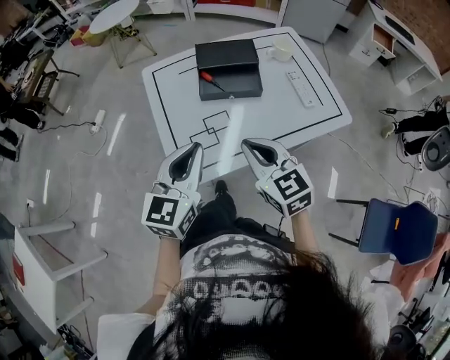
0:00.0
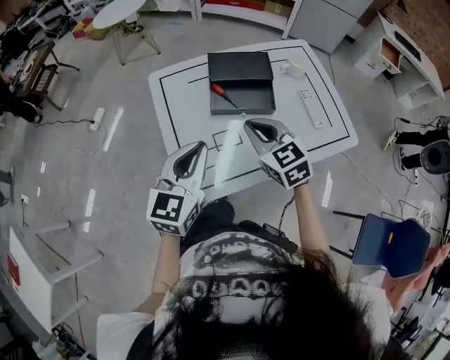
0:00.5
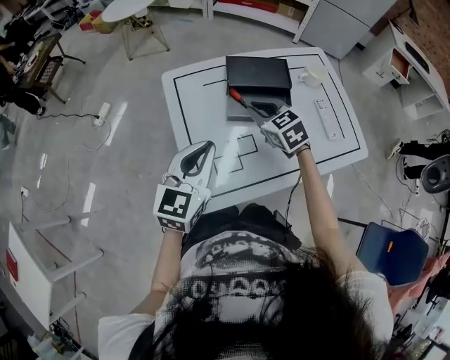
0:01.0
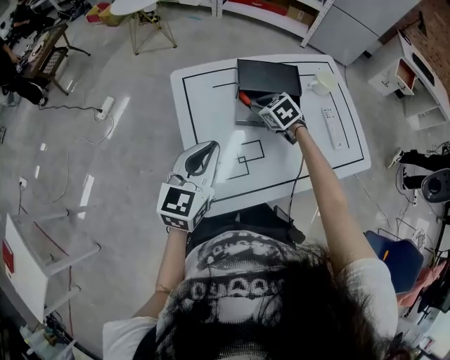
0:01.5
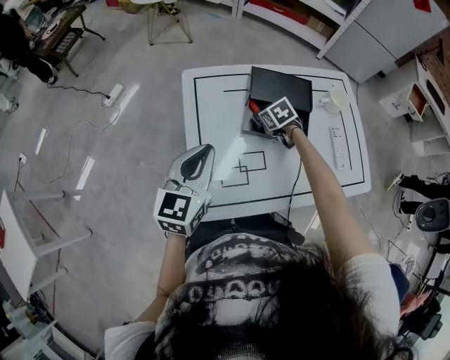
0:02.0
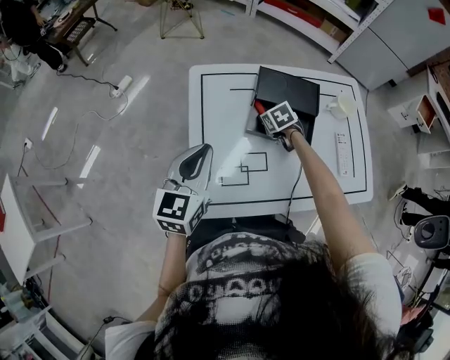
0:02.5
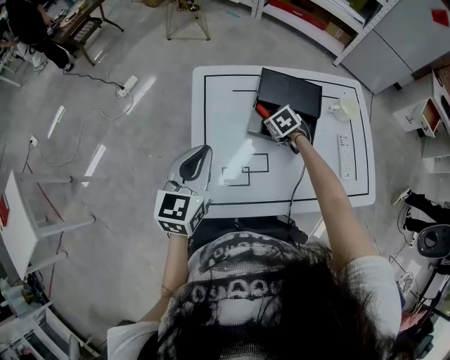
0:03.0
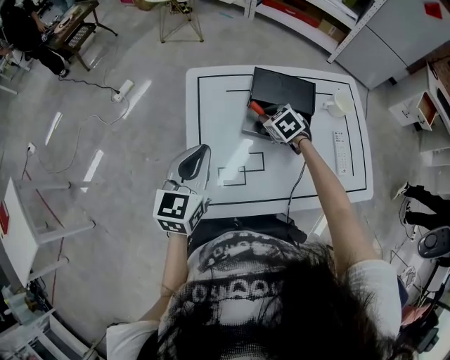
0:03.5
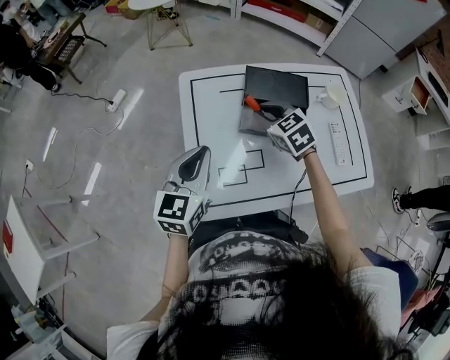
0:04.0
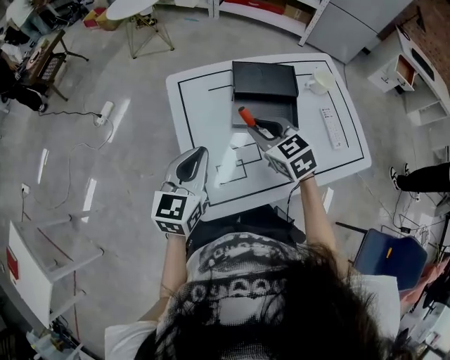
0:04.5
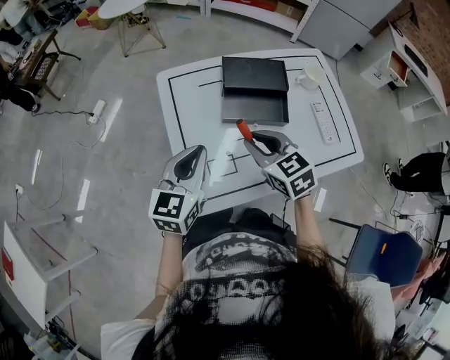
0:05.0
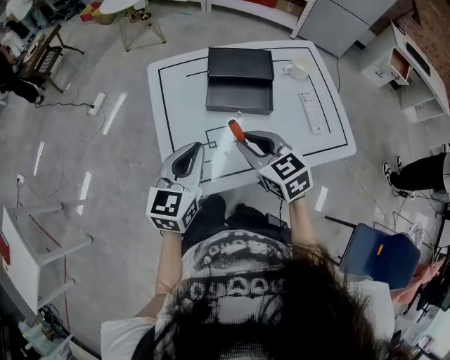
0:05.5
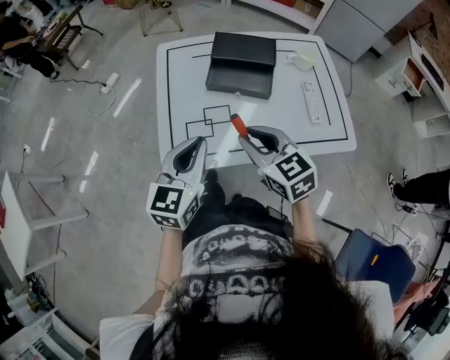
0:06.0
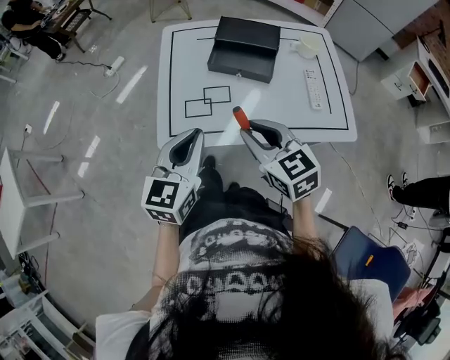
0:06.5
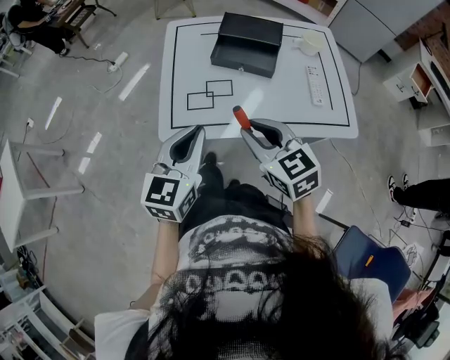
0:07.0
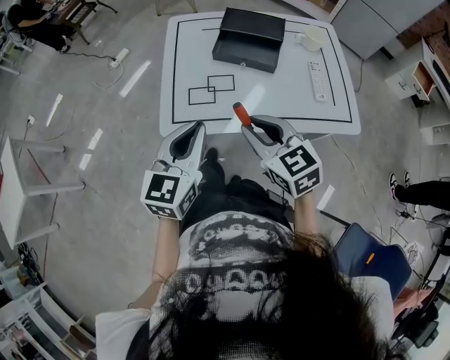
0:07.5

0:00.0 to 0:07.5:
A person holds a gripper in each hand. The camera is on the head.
0:00.0 to 0:02.0: The left gripper shifts approximately 20 cm forward and to the left. The right gripper heads forward and downward, covering approximately 40 cm, tips its fingers downward by about 40 degrees, and opens.
0:02.0 to 0:04.0: The right gripper travels upward by about 15 cm, and swivels some 20 degrees.
0:04.0 to 0:05.5: The right gripper goes approximately 20 cm backward; the left gripper goes some 10 cm backward and to the right.
0:05.5 to 0:07.5: Both grippers travel together backward, about 15 cm.

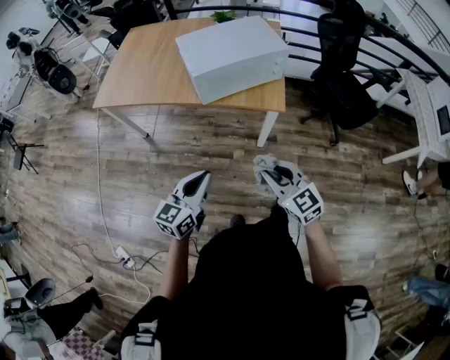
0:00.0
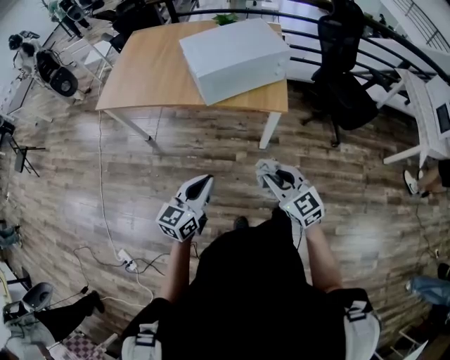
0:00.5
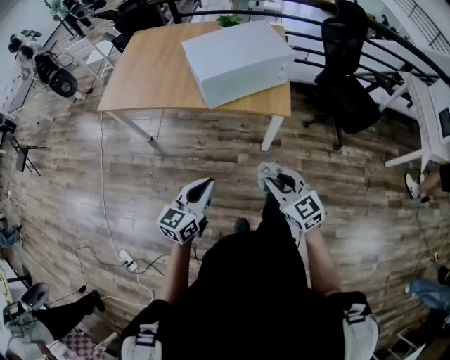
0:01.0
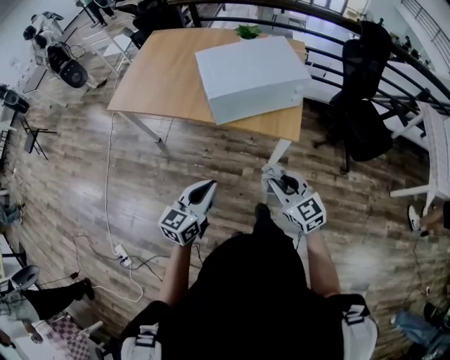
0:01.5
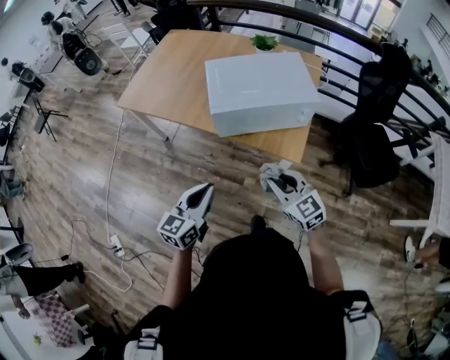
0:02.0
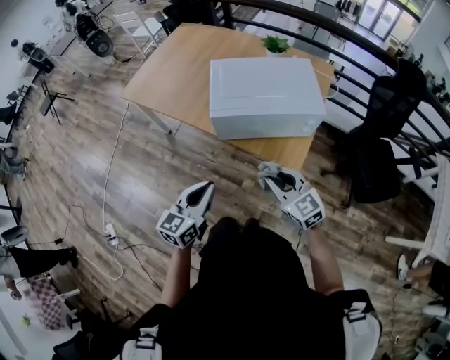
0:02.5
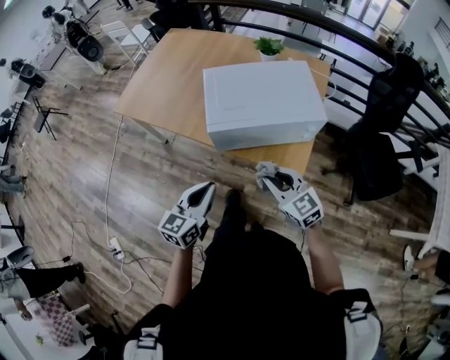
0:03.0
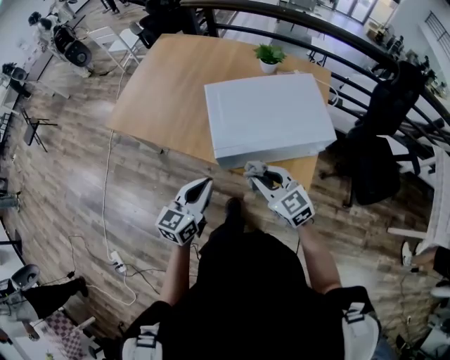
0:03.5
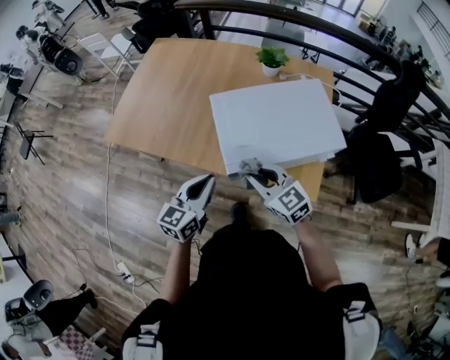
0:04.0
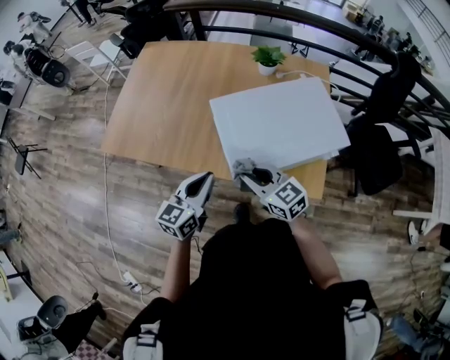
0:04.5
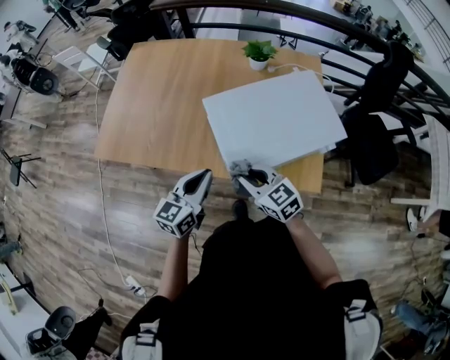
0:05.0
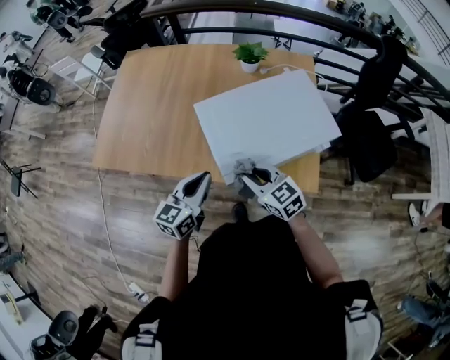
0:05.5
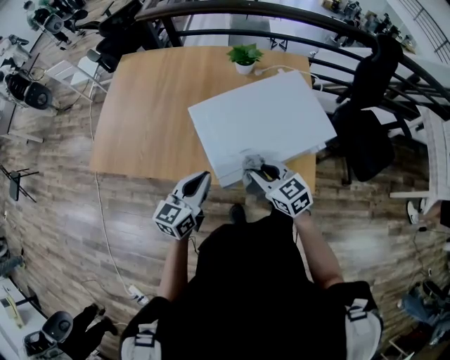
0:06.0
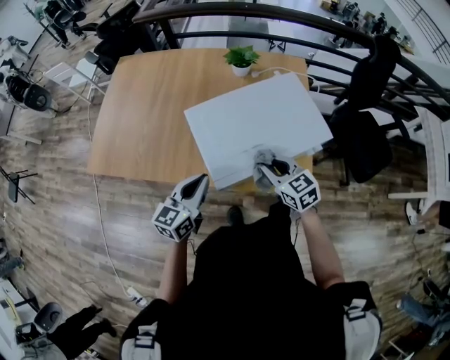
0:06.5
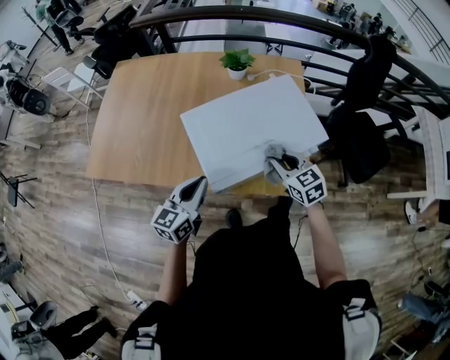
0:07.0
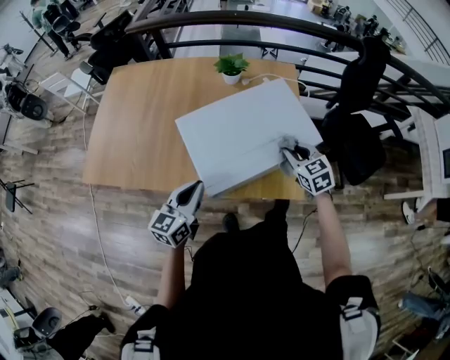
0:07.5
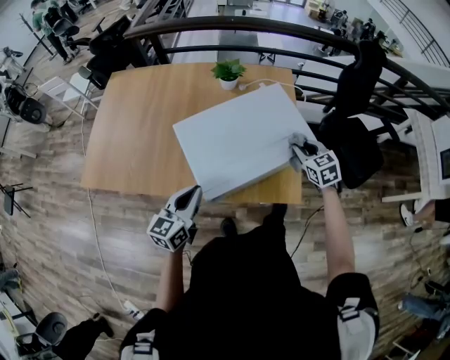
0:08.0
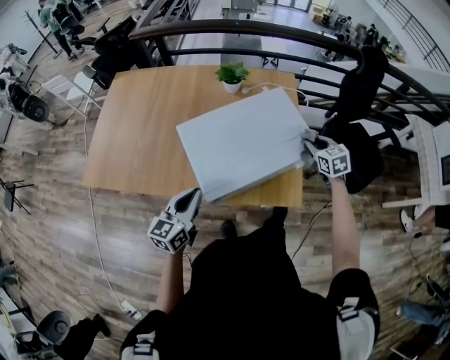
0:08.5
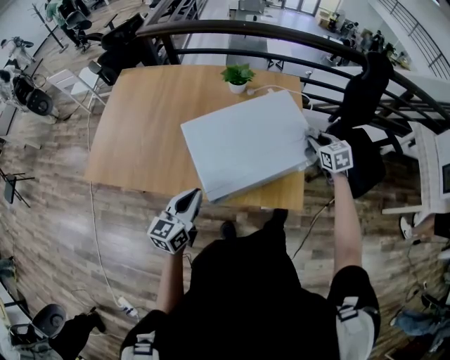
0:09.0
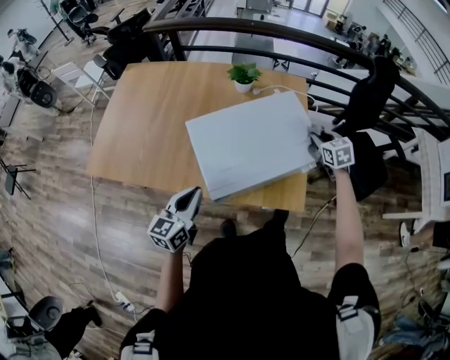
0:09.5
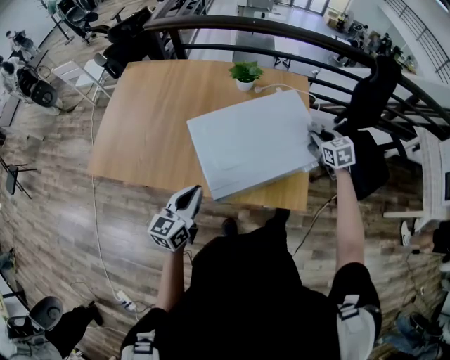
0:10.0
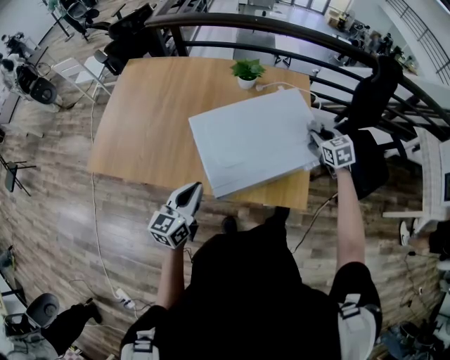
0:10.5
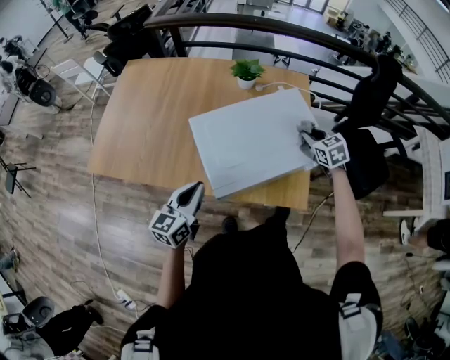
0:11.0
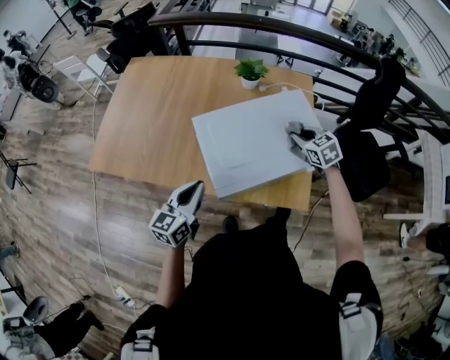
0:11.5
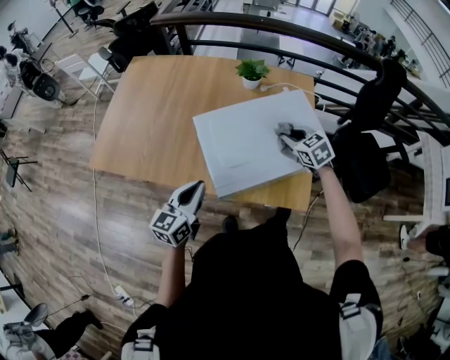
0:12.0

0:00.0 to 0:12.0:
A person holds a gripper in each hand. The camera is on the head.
0:00.0 to 0:02.0: The grippers both shift forward by roughly 15 cm.
0:02.0 to 0:04.0: The left gripper heads forward, covering about 30 cm, while the right gripper shifts roughly 30 cm forward and to the left.
0:04.0 to 0:06.0: The right gripper shifts by roughly 10 cm; the left gripper travels forward by approximately 5 cm.
0:06.0 to 0:08.0: The right gripper travels to the right and forward by some 25 cm, and changes its angle by about 30 degrees.
0:08.0 to 0:10.0: The right gripper heads forward, covering approximately 10 cm.
0:10.0 to 0:12.0: The right gripper moves to the left, roughly 15 cm.

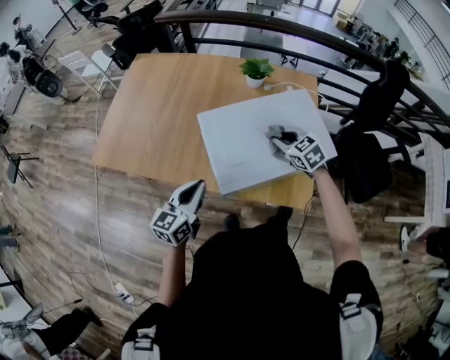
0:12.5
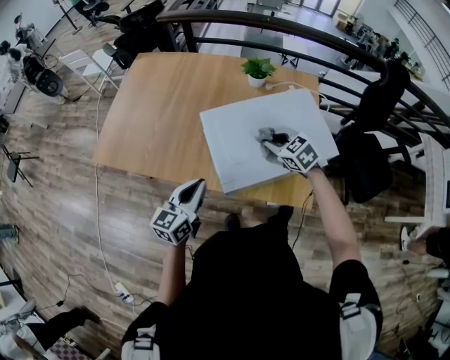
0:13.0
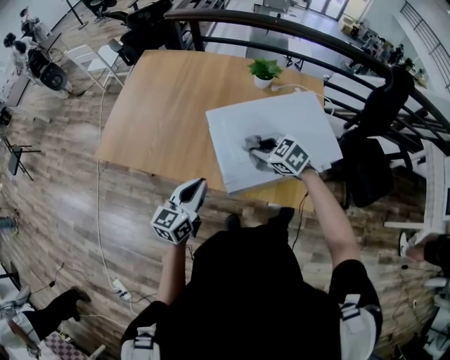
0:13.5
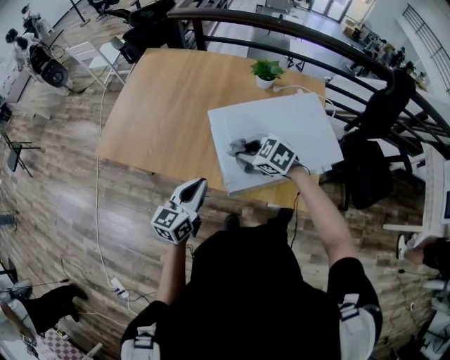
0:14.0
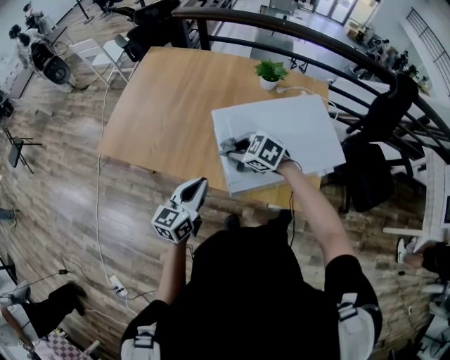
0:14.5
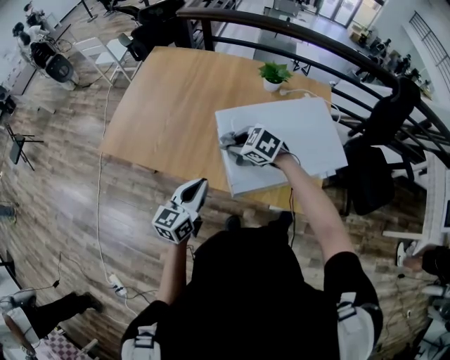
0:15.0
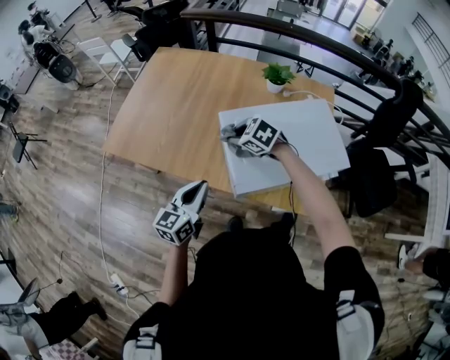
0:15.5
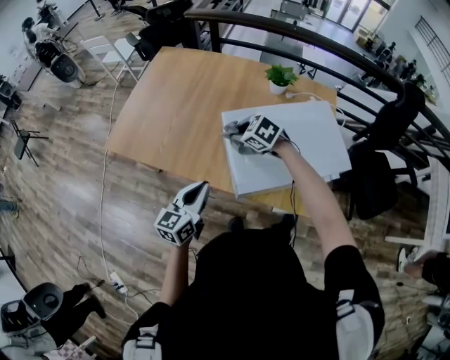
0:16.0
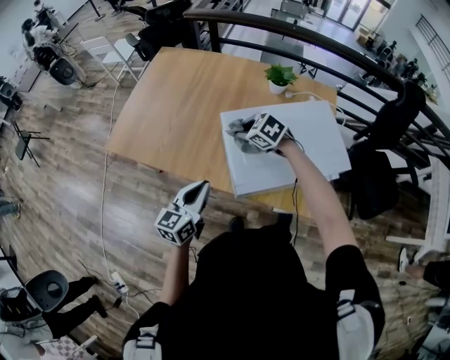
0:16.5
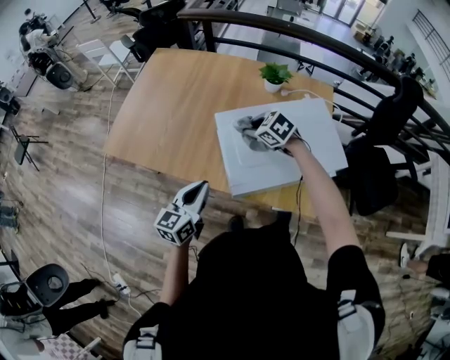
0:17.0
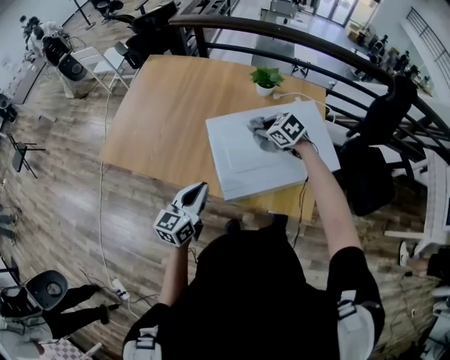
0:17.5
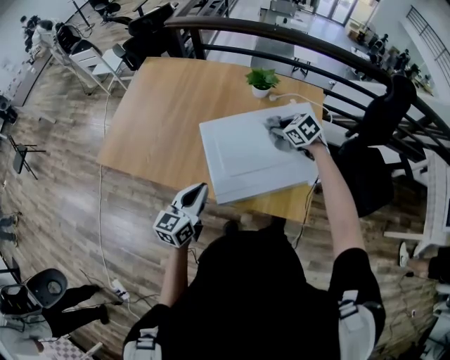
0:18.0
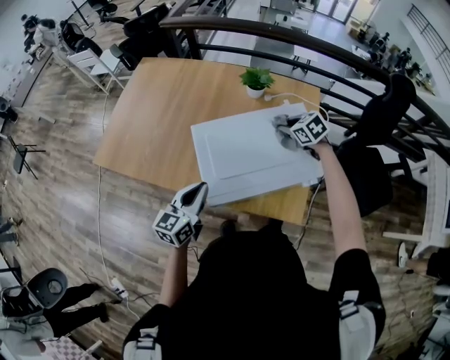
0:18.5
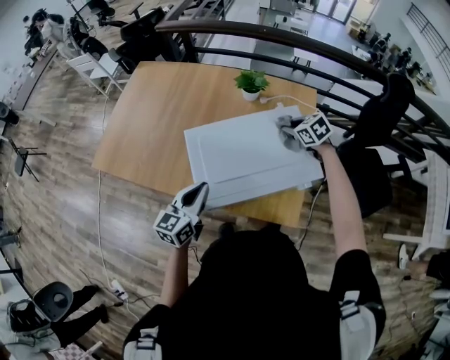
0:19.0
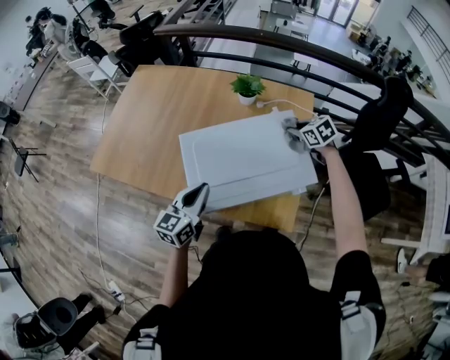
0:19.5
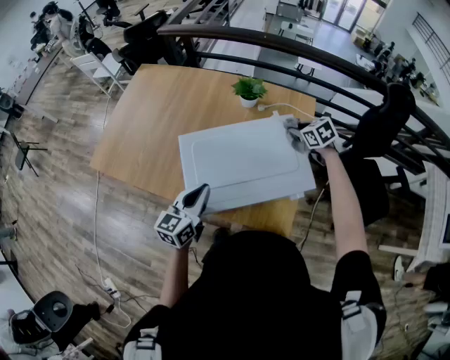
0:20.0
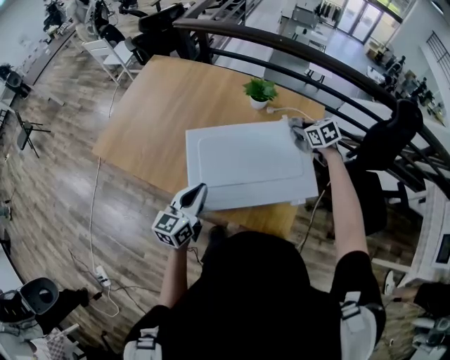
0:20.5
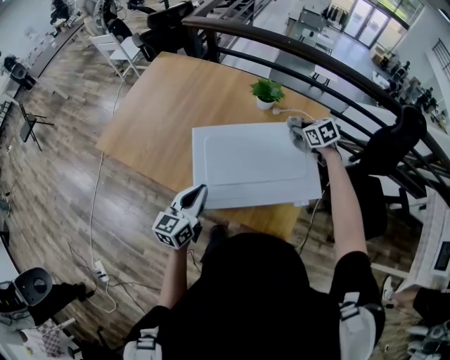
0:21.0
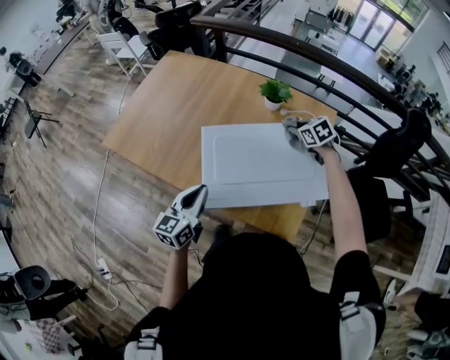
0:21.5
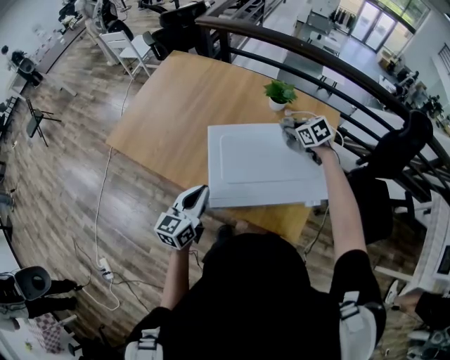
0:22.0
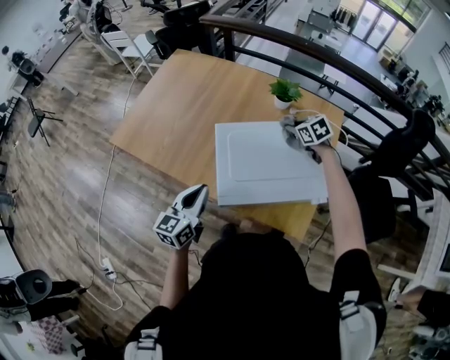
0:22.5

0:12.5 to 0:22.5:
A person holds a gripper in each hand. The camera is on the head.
0:12.5 to 0:14.5: The right gripper heads to the left, covering some 20 cm, and changes its angle by about 30 degrees.
0:14.5 to 0:16.5: The right gripper is displaced forward by roughly 5 cm.
0:16.5 to 0:18.5: The left gripper travels to the right by about 10 cm; the right gripper is displaced to the right by approximately 30 cm, and turns by approximately 20 degrees.
0:18.5 to 0:20.5: The right gripper shifts approximately 10 cm to the right and forward; the left gripper changes place by approximately 5 cm.
0:20.5 to 0:22.5: The right gripper moves to the left, some 15 cm, while the left gripper is displaced to the left by about 10 cm.
